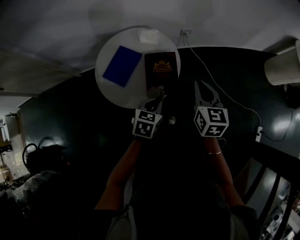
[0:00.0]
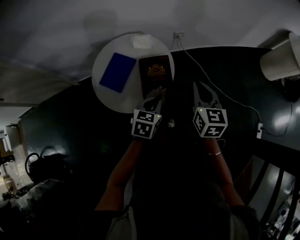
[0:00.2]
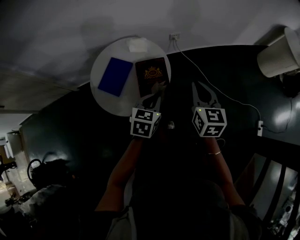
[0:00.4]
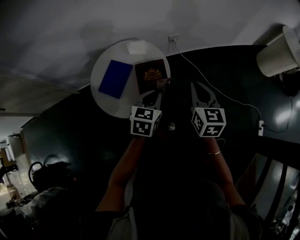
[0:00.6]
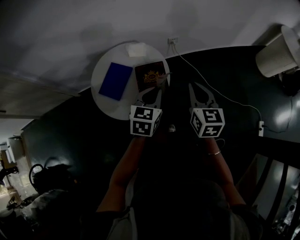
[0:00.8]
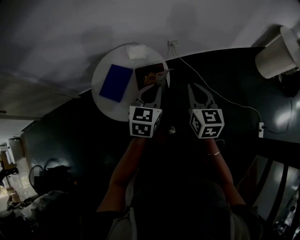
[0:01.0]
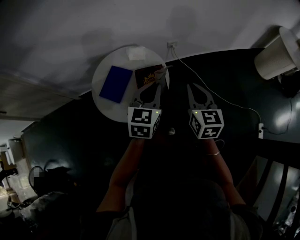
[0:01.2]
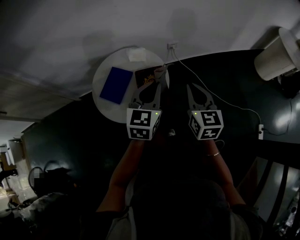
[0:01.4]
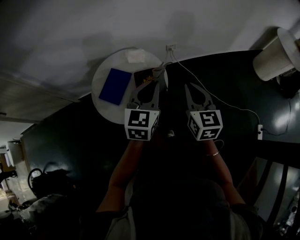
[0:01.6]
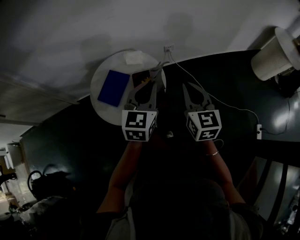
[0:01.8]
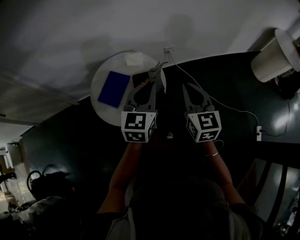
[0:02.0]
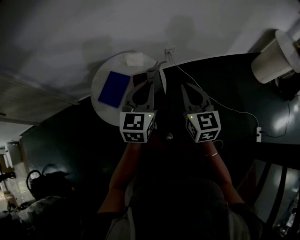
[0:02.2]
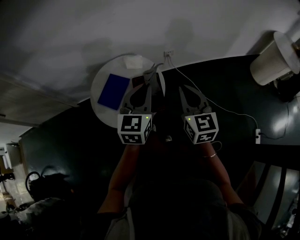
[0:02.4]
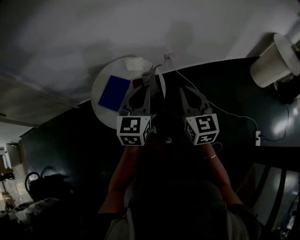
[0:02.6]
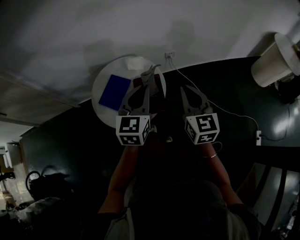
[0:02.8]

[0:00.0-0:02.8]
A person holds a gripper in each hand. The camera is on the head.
0.0 to 1.4 s: The left gripper is displaced upward and forward by roughly 20 cm, and changes its angle by approximately 30 degrees. The right gripper moves about 5 cm.
1.4 to 2.8 s: There are only small adjustments of the grippers.

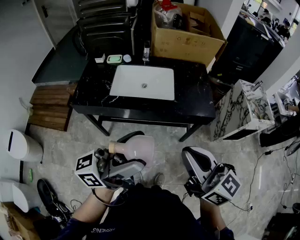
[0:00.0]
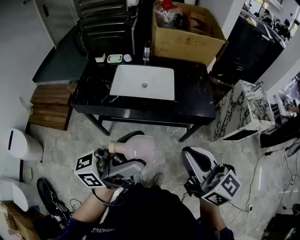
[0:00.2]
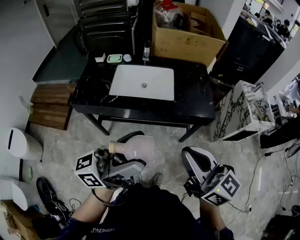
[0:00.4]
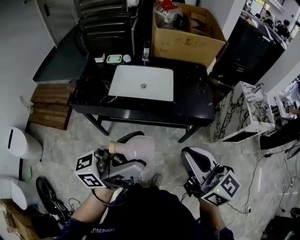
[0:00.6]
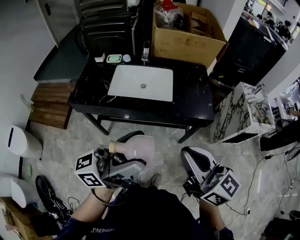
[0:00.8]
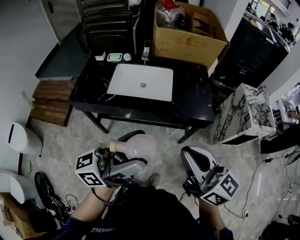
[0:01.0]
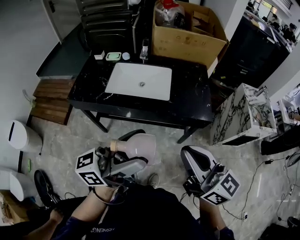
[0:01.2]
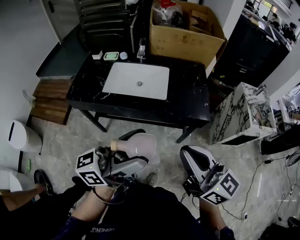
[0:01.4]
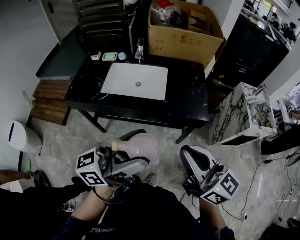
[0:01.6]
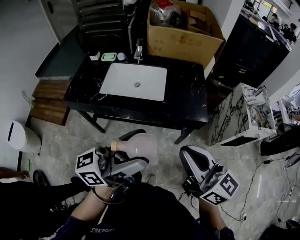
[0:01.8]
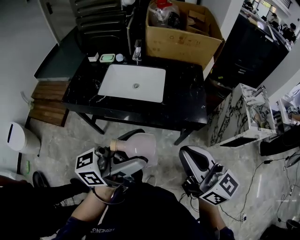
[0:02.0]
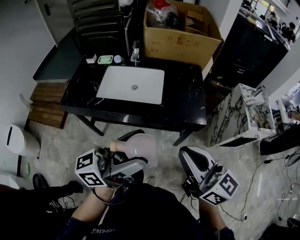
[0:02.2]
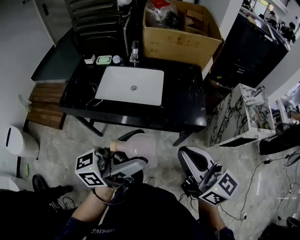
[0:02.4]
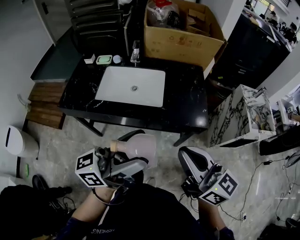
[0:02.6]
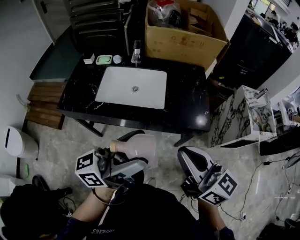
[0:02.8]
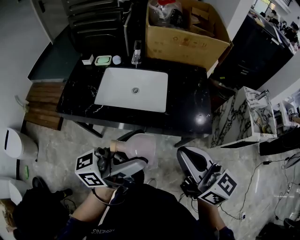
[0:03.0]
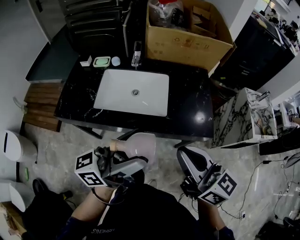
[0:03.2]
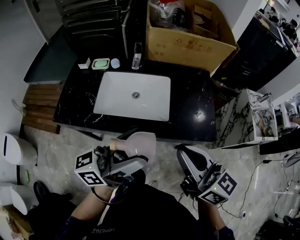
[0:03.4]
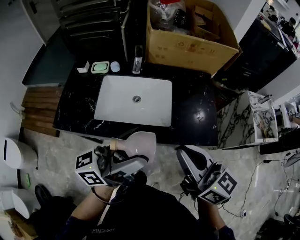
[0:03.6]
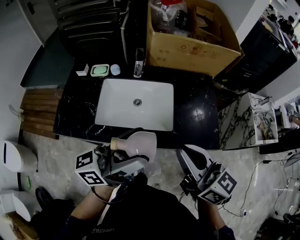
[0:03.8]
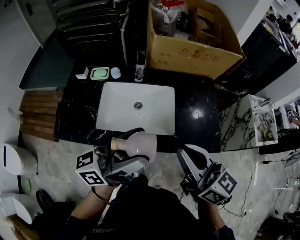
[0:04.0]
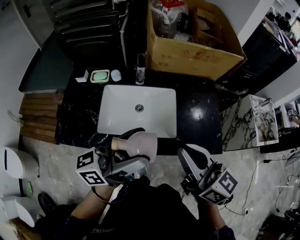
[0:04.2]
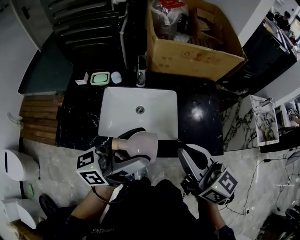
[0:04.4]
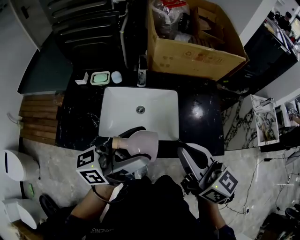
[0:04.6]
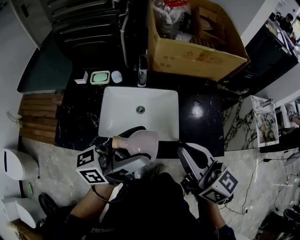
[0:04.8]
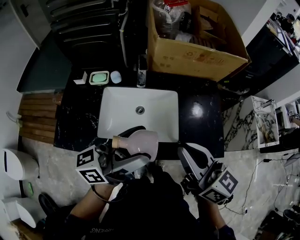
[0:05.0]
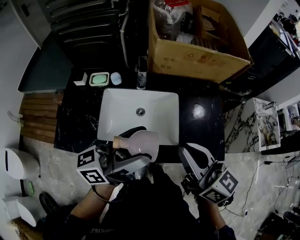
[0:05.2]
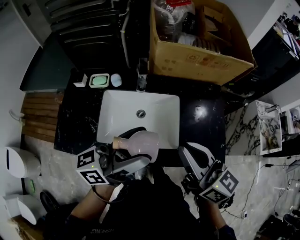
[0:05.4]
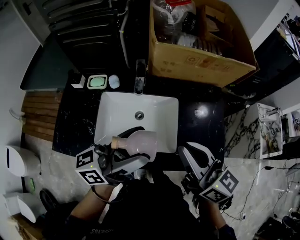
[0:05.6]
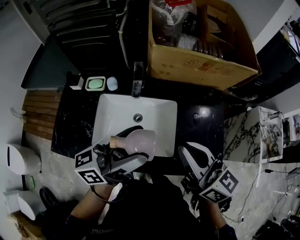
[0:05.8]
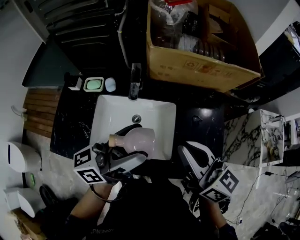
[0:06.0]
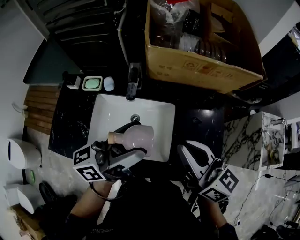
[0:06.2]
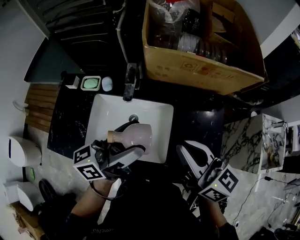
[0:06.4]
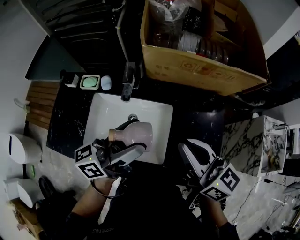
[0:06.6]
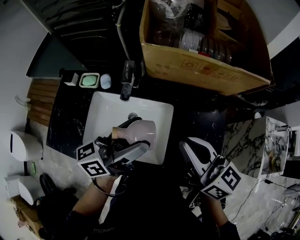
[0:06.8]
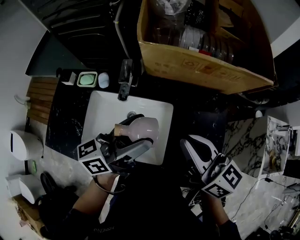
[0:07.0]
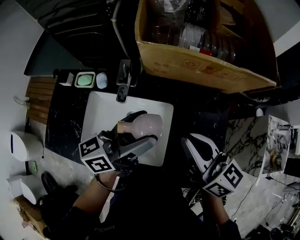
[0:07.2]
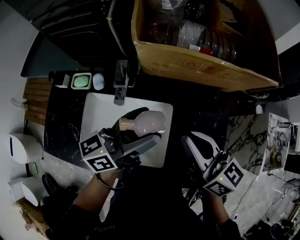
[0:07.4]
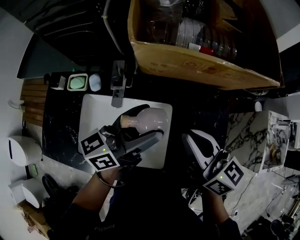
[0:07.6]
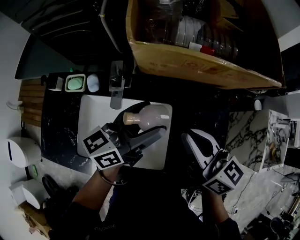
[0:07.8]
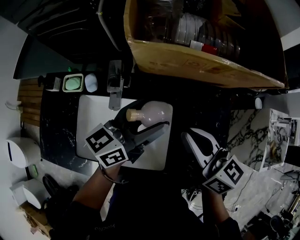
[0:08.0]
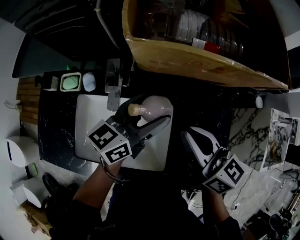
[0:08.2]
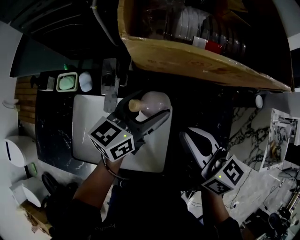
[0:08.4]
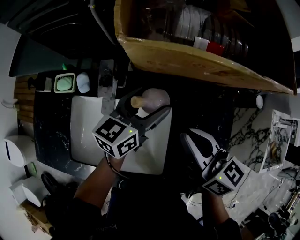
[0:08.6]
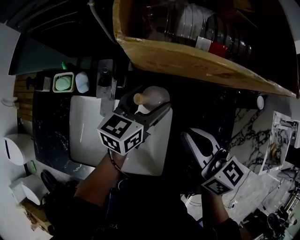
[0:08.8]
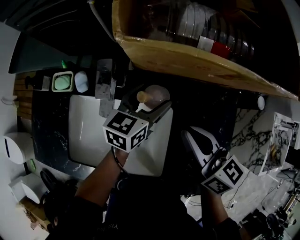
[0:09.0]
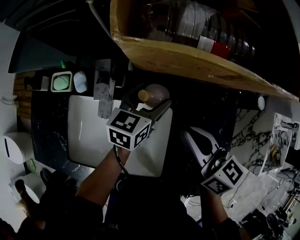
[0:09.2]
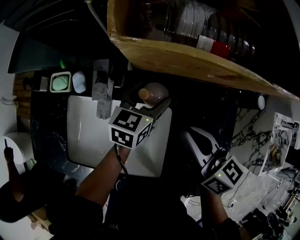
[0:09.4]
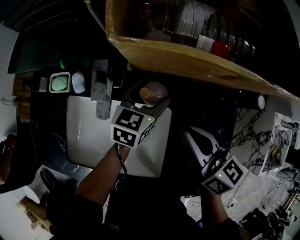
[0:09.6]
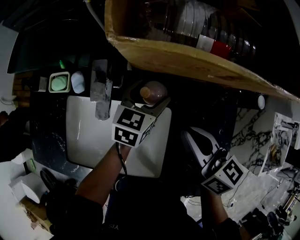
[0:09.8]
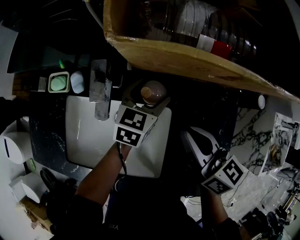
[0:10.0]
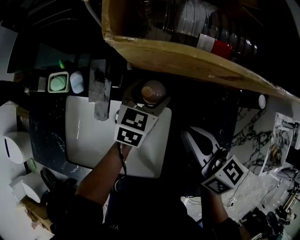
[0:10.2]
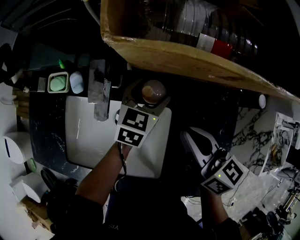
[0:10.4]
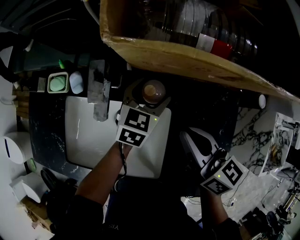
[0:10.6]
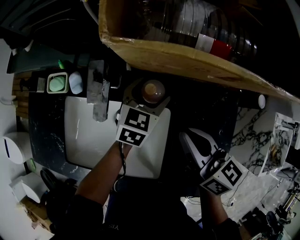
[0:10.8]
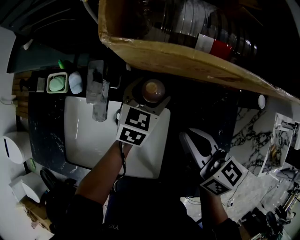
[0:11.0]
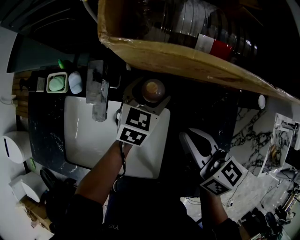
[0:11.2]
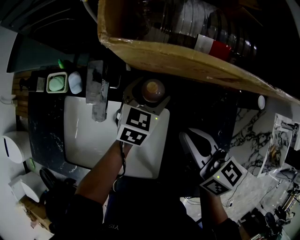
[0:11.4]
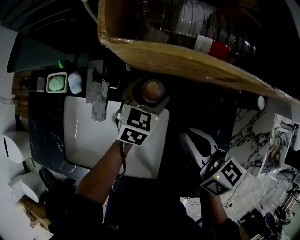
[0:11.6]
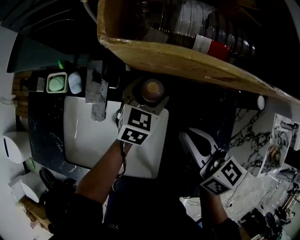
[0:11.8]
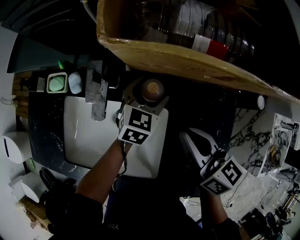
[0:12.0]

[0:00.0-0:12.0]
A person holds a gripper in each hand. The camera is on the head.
0.0 to 1.6 s: The two grippers go roughly 10 cm to the right.
1.6 to 3.0 s: Both grippers travel together forward, some 10 cm.
3.0 to 4.4 s: Both grippers move forward and to the left, approximately 20 cm.
4.4 to 6.0 s: The two grippers go approximately 15 cm forward.
6.0 to 7.6 s: The left gripper is displaced forward, downward and to the right by approximately 20 cm. Meanwhile the right gripper shifts roughly 15 cm forward and downward.
7.6 to 9.0 s: The right gripper travels downward and forward by approximately 10 cm. Meanwhile the left gripper travels downward and forward by approximately 20 cm, and swivels roughly 30 degrees.
9.0 to 10.4 s: The grippers make only small movements.
10.4 to 12.0 s: There are only small adjustments of the grippers.

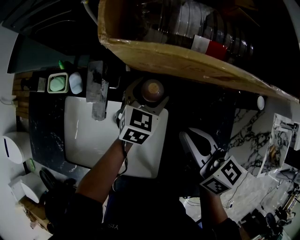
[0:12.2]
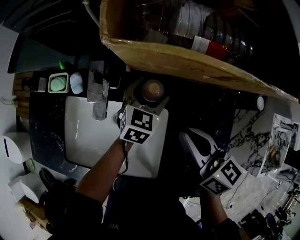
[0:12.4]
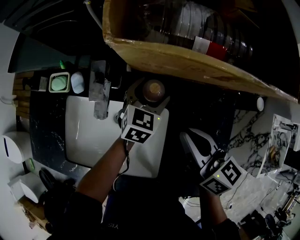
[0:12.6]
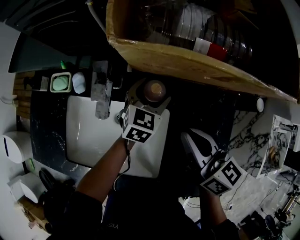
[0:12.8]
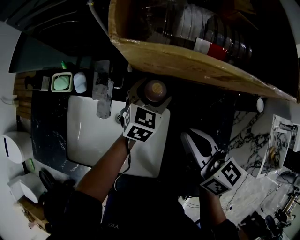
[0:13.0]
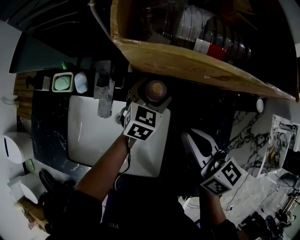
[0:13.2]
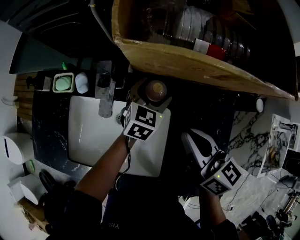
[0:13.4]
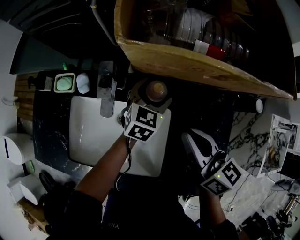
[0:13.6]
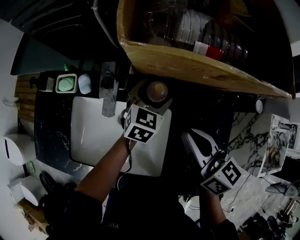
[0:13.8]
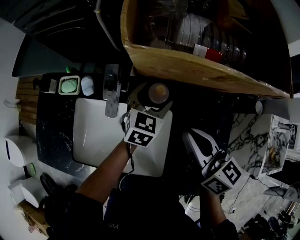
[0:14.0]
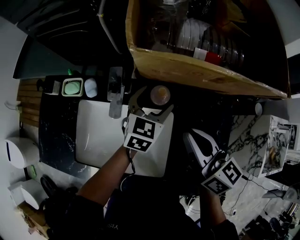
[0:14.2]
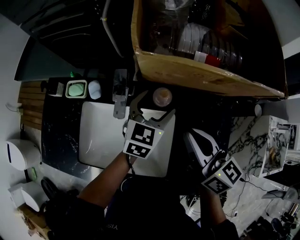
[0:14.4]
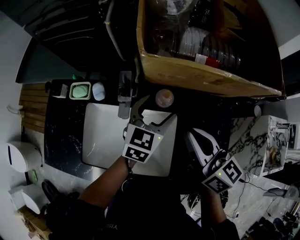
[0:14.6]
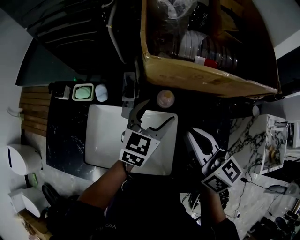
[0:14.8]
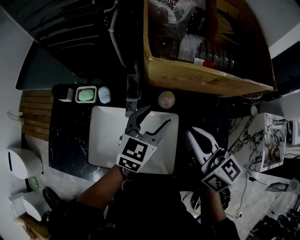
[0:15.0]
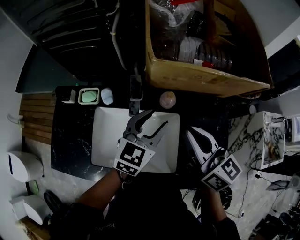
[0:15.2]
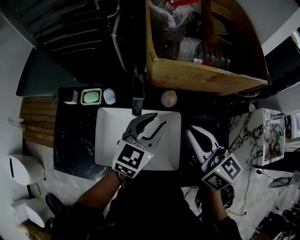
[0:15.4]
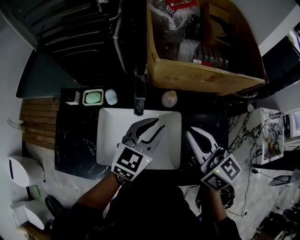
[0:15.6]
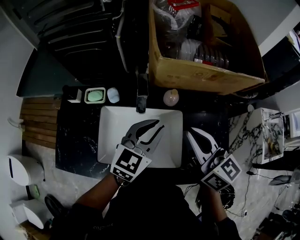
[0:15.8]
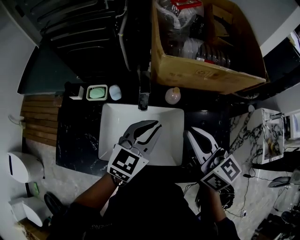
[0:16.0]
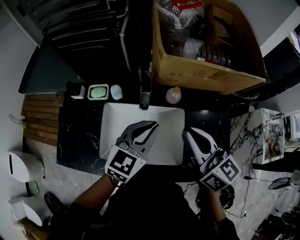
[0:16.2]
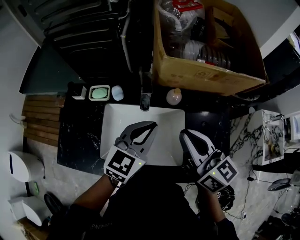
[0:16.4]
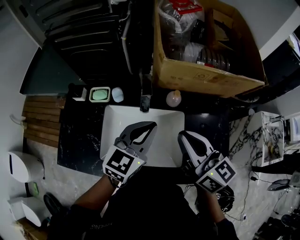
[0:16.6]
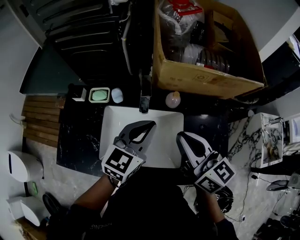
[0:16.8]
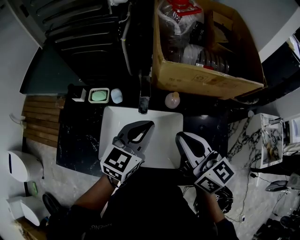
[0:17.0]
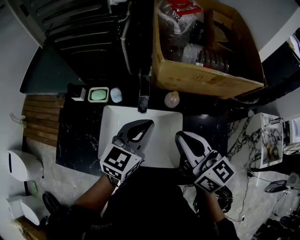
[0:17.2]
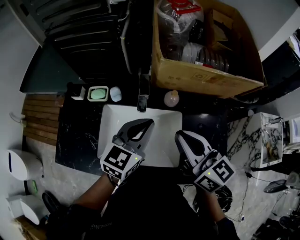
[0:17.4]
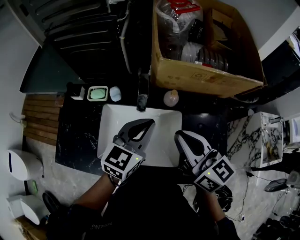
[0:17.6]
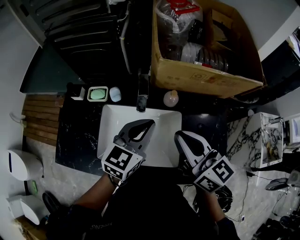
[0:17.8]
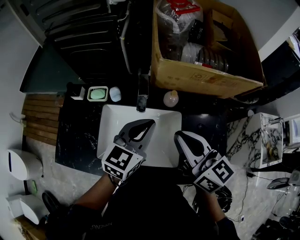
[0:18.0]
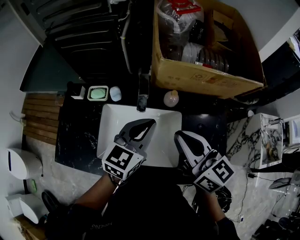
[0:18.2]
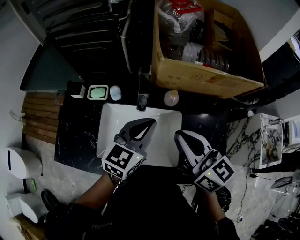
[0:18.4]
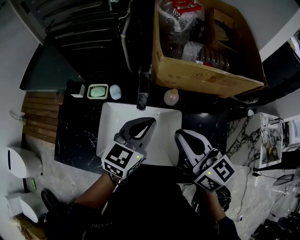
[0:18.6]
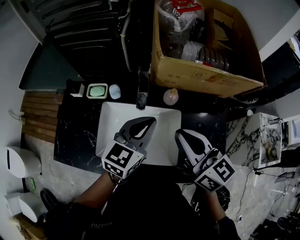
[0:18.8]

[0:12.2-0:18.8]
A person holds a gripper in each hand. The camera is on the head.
12.2 to 13.8 s: The grippers stay close to where they were, moving slightly.
13.8 to 15.4 s: The left gripper shifts roughly 20 cm upward, backward and to the left, and closes its fingers, while the right gripper goes about 15 cm upward, to the left and backward.
15.4 to 17.2 s: The left gripper ends up approximately 5 cm from where it was. The right gripper ends up some 5 cm from where it was.
17.2 to 18.8 s: Both grippers stay put.

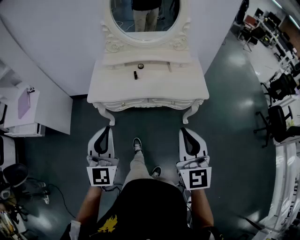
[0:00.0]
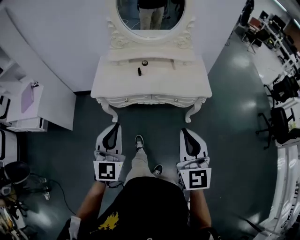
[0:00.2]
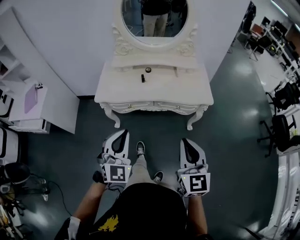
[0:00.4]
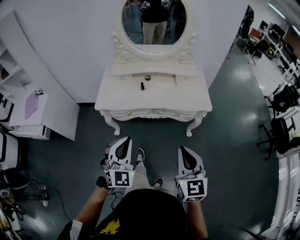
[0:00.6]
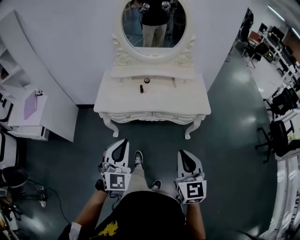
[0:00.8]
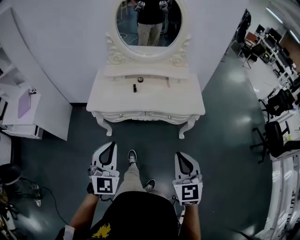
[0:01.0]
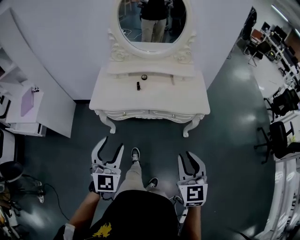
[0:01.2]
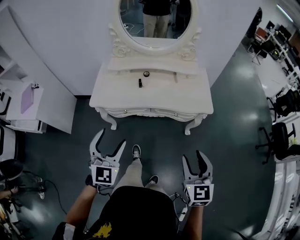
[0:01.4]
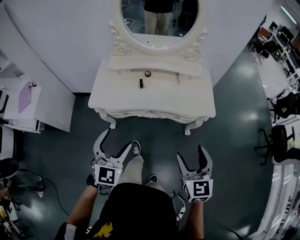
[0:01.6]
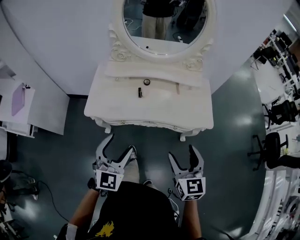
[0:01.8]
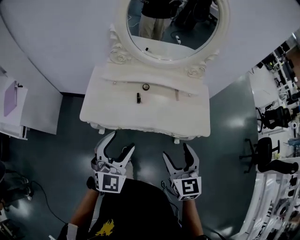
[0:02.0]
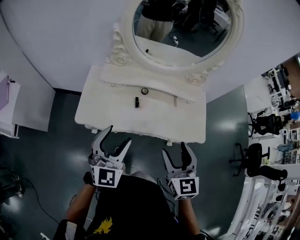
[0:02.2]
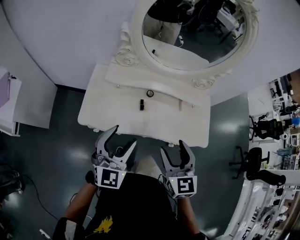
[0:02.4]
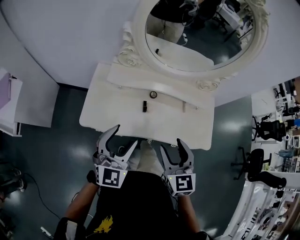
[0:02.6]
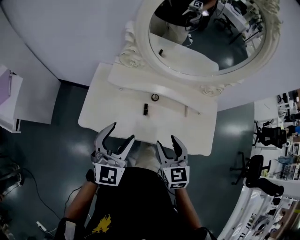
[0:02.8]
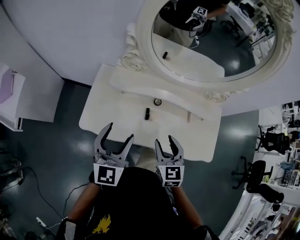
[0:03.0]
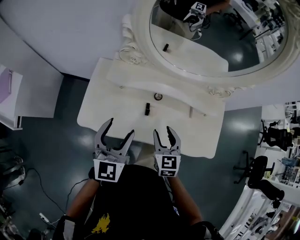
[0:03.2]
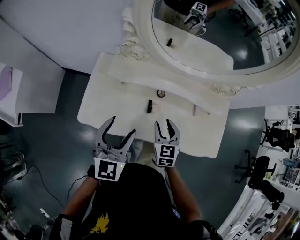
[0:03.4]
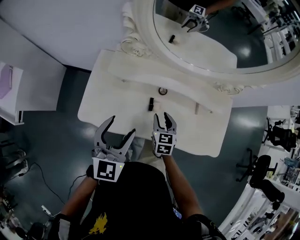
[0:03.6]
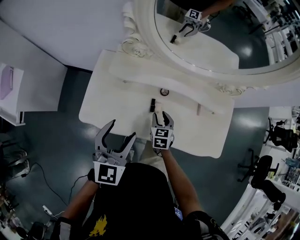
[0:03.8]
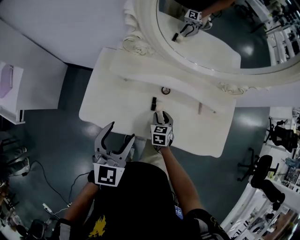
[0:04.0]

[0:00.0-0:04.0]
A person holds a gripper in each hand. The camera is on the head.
0.0 to 1.4 s: The left gripper is displaced downward and forward by some 10 cm, and opens, while the right gripper heads downward and to the right, covering about 15 cm, turns by about 20 degrees, and opens.
1.4 to 2.6 s: The left gripper shifts some 30 cm forward. The right gripper moves forward and to the left, roughly 40 cm.
2.6 to 4.0 s: The left gripper shifts some 15 cm downward and forward, while the right gripper heads downward and forward, covering roughly 40 cm, and swivels about 20 degrees.
